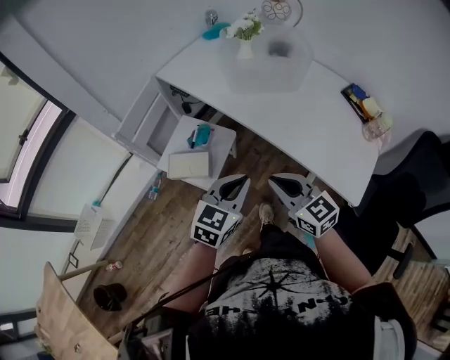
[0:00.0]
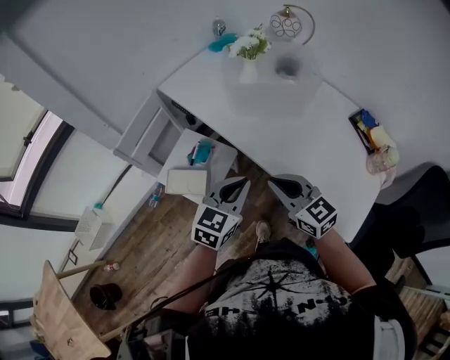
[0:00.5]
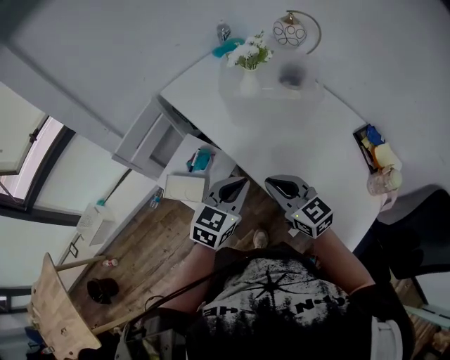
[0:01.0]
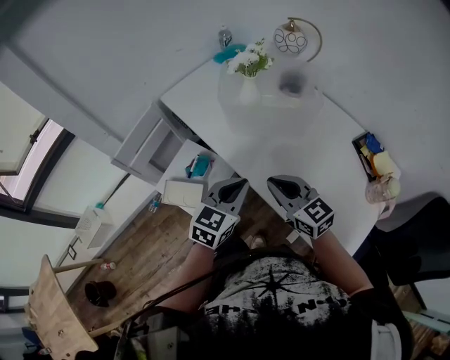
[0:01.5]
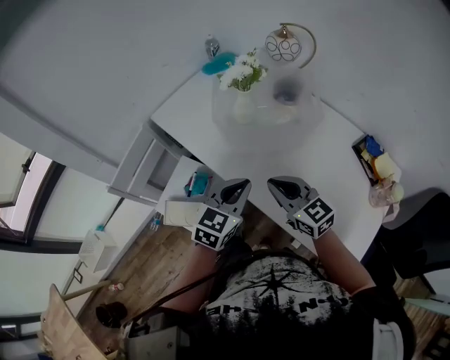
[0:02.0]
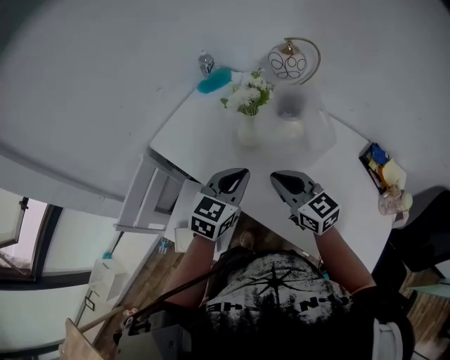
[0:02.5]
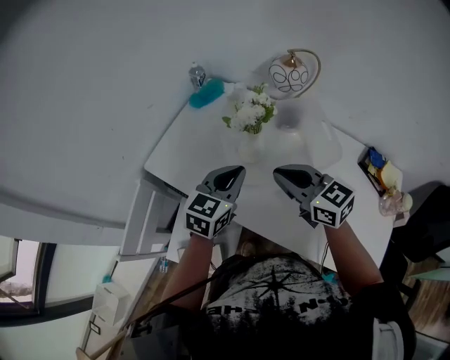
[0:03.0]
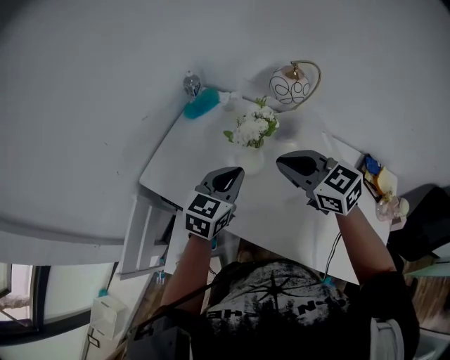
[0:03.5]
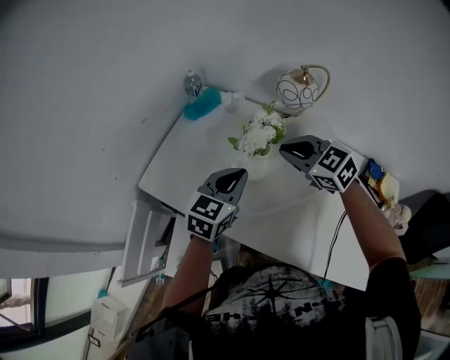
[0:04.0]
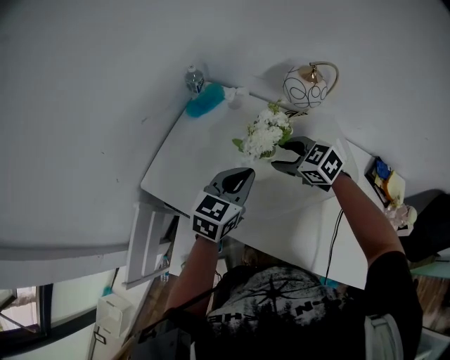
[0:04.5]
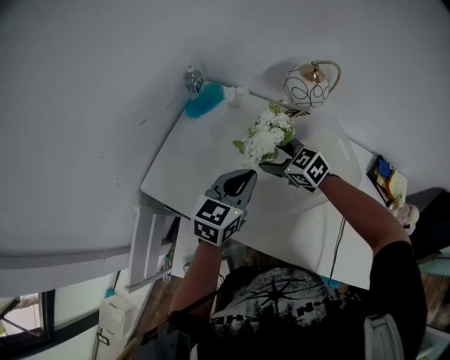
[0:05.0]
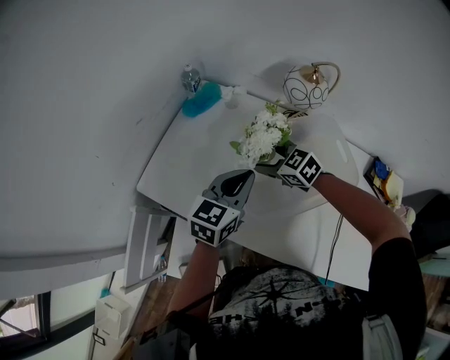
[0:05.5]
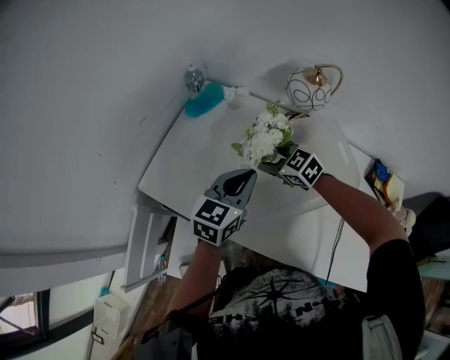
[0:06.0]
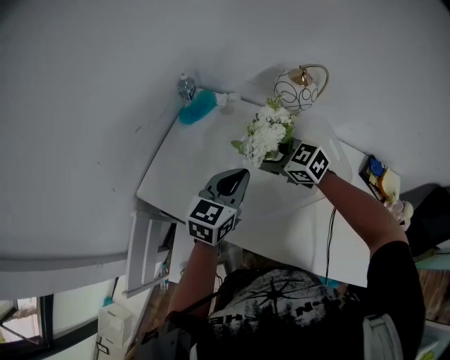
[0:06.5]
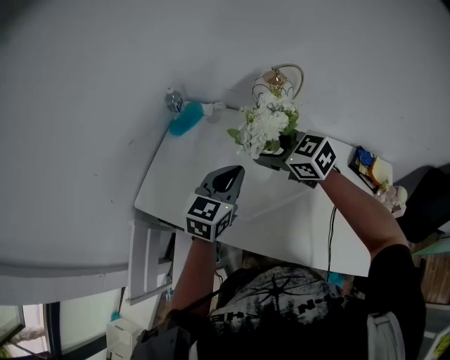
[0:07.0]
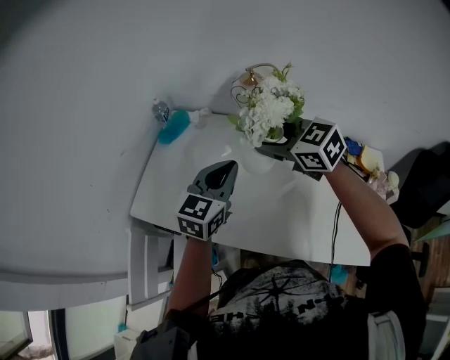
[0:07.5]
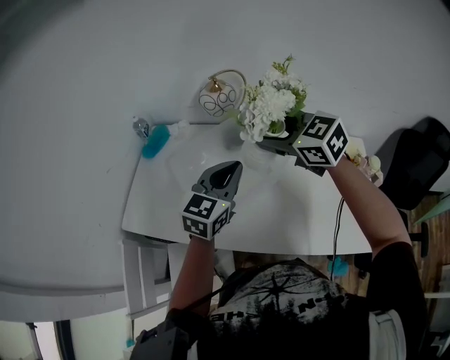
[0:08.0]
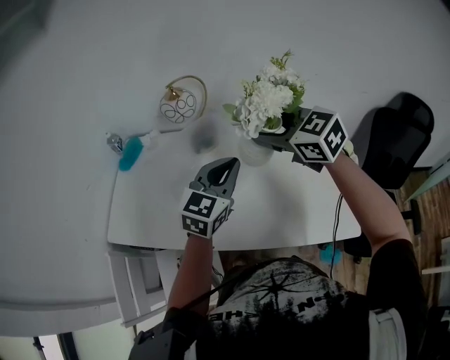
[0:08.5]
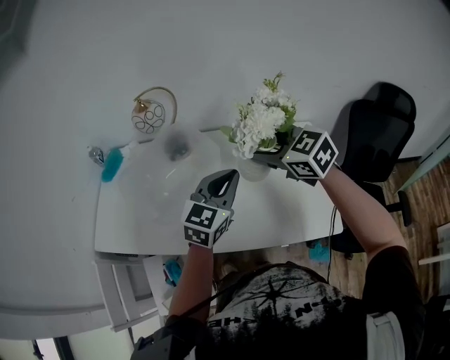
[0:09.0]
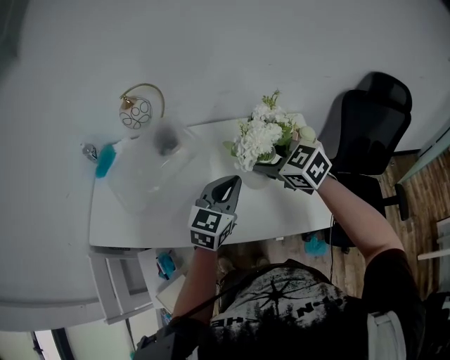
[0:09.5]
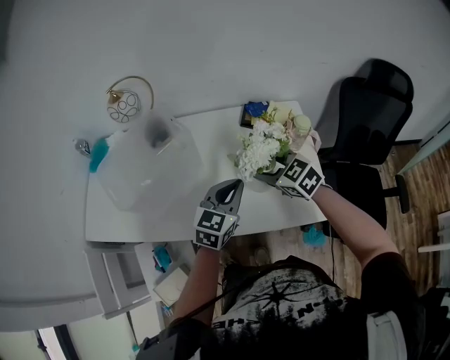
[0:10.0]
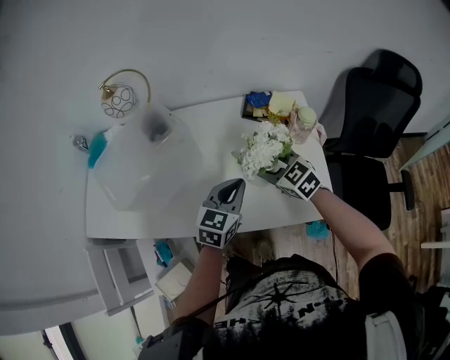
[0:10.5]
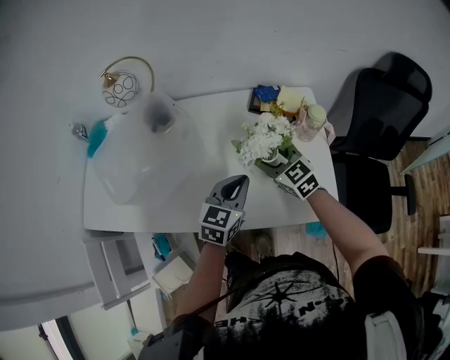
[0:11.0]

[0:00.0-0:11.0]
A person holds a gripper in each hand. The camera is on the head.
0:00.0 to 0:02.0: The grippers both shift forward by roughly 25 cm.
0:02.0 to 0:03.5: The right gripper shifts roughly 25 cm forward and upward, while the left gripper heads forward, covering roughly 25 cm.
0:03.5 to 0:05.5: The right gripper goes some 20 cm downward and forward, and opens; the left gripper heads forward, covering approximately 5 cm.
0:05.5 to 0:07.5: The left gripper goes roughly 10 cm upward; the right gripper heads upward and to the right, covering approximately 20 cm.
0:07.5 to 0:09.0: The left gripper heads to the right, covering roughly 25 cm. The right gripper travels to the right and backward by roughly 30 cm.
0:09.0 to 0:11.0: The left gripper heads downward and to the right, covering approximately 15 cm; the right gripper heads downward, covering approximately 20 cm.

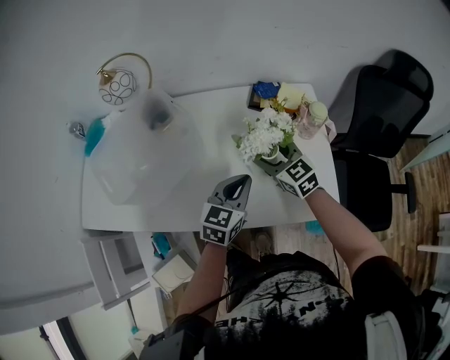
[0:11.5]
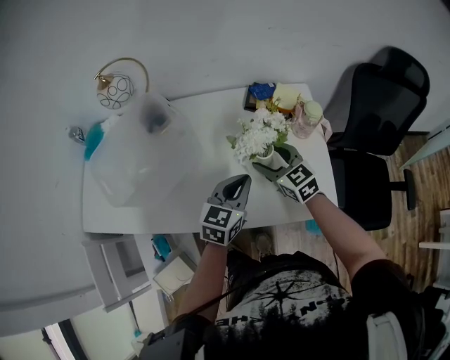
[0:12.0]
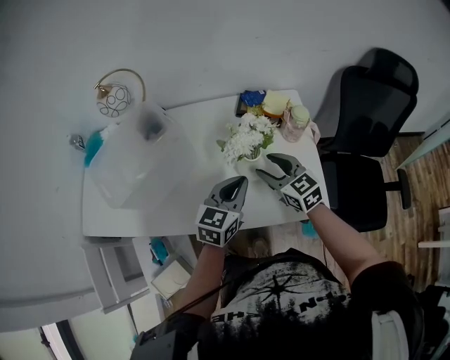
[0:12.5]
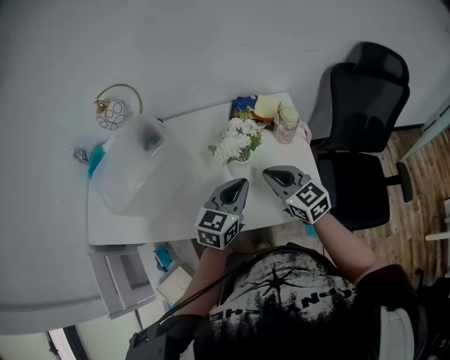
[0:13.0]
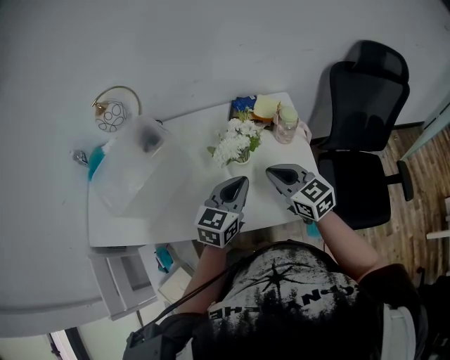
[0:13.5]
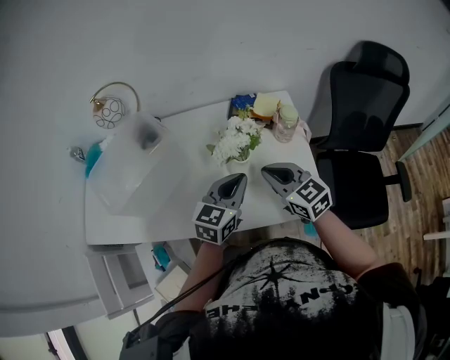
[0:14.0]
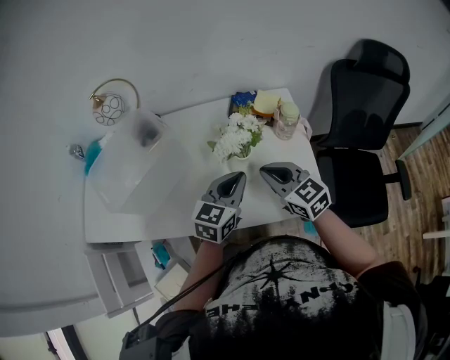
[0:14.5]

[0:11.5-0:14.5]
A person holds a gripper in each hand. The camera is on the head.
0:11.5 to 0:13.0: The left gripper is displaced to the right and upward by some 10 cm. Meanwhile the right gripper is displaced backward, to the right and upward by approximately 15 cm, and closes.
0:13.0 to 0:14.5: The two grippers keep their place.

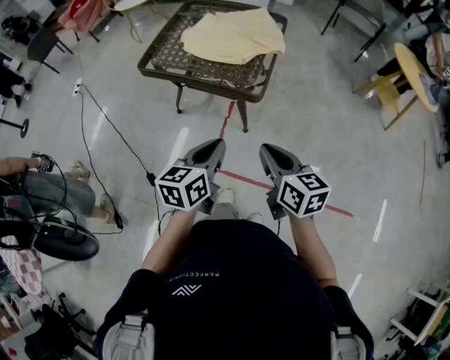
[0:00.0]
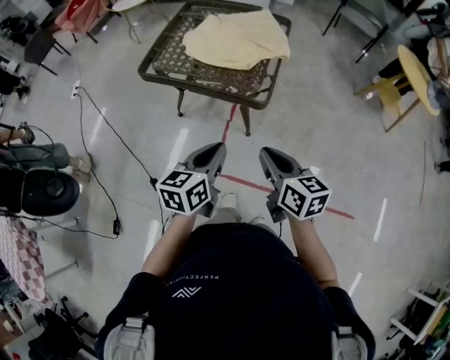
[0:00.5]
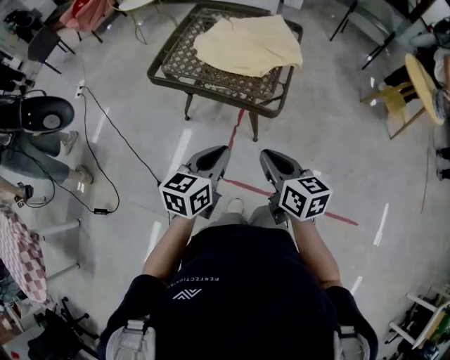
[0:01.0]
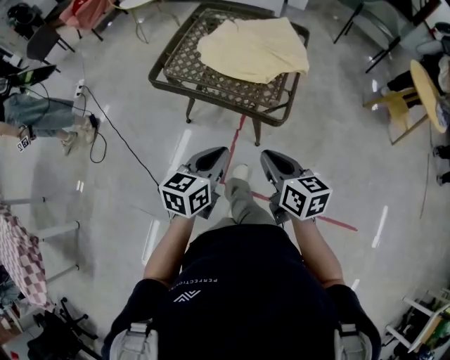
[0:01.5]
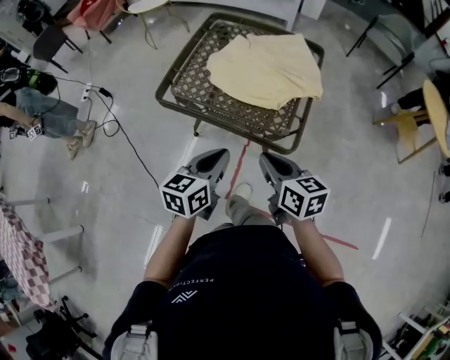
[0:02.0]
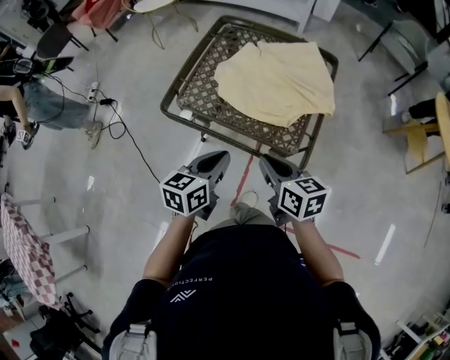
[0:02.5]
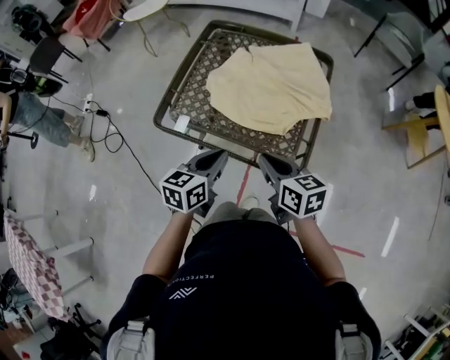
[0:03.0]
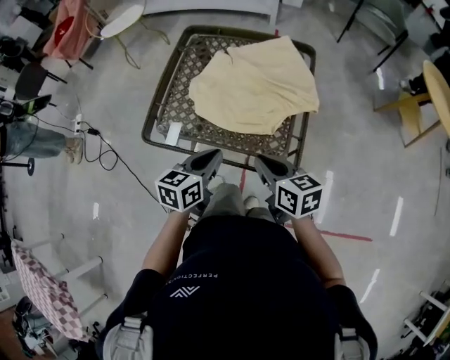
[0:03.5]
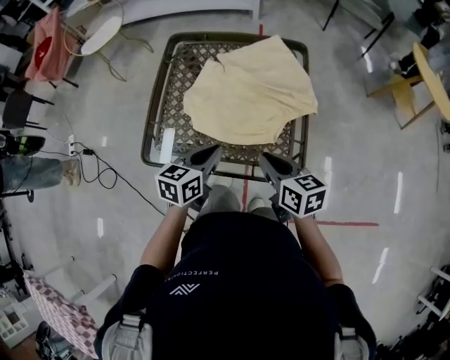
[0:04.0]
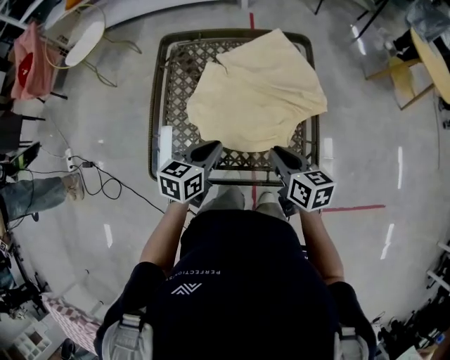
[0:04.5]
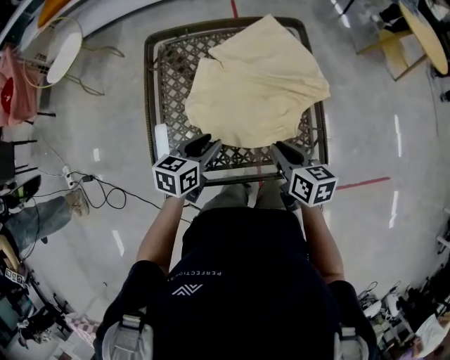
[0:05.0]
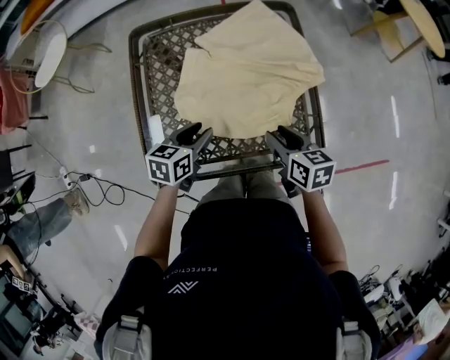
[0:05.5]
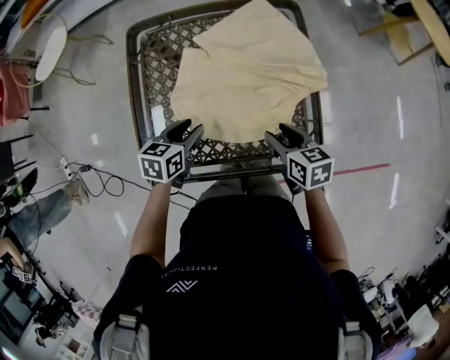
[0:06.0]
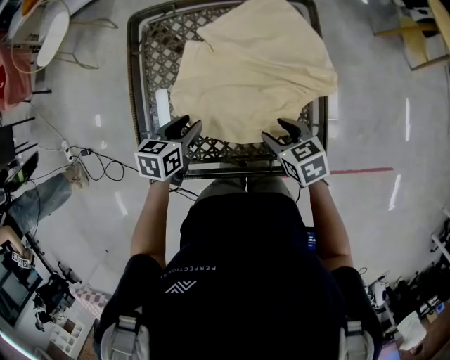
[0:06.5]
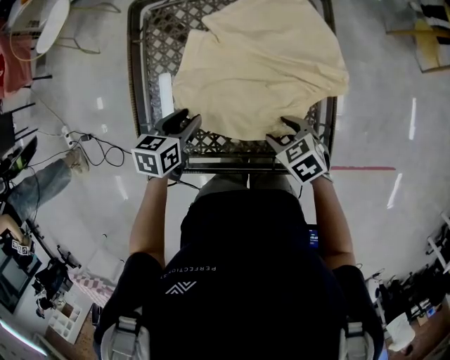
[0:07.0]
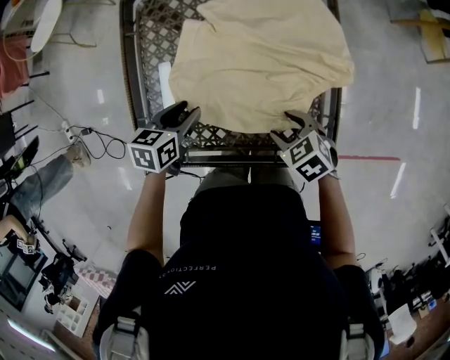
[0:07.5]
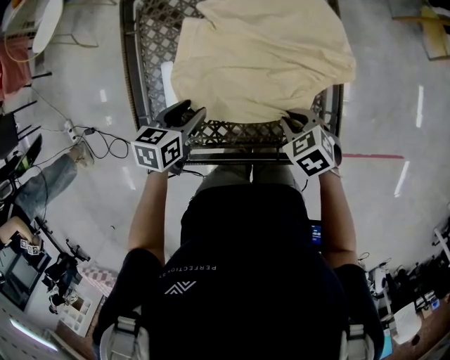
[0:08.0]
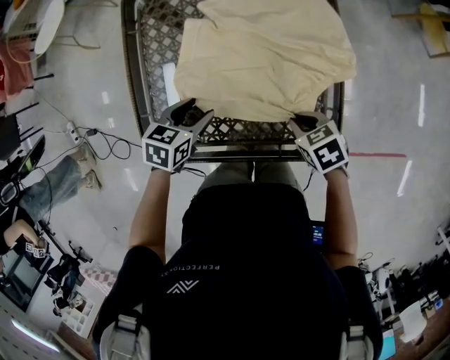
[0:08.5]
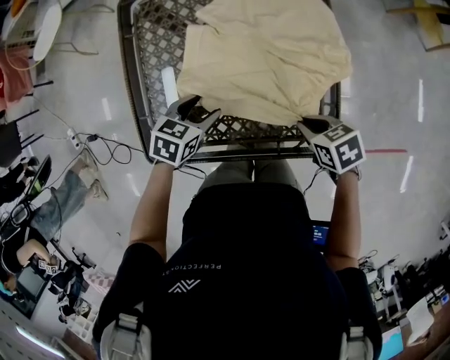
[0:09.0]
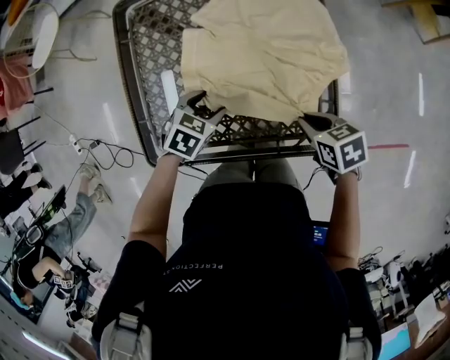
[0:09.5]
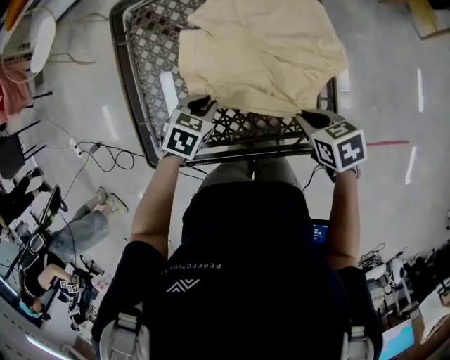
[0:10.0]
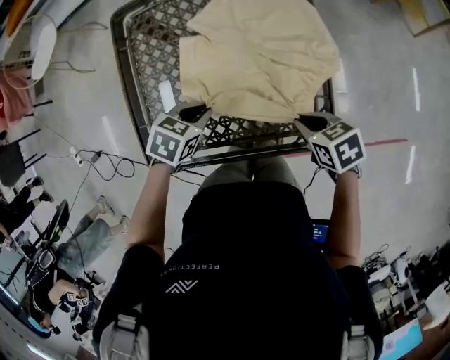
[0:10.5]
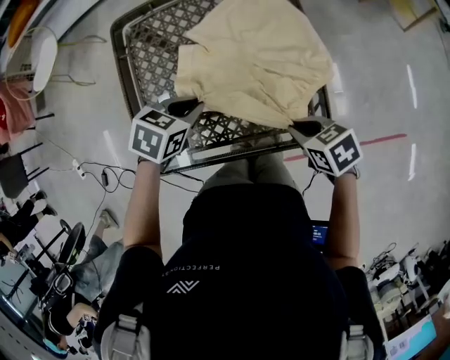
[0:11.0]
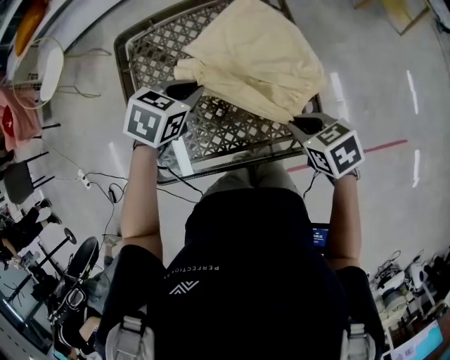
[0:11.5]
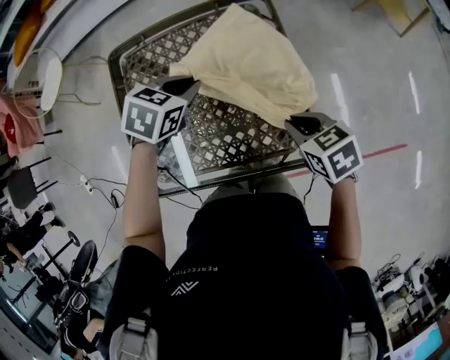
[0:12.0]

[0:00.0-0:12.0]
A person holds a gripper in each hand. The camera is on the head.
0:00.0 to 0:02.0: The grippers both shift forward and to the left by some 25 cm.
0:02.0 to 0:04.0: The two grippers go approximately 20 cm forward.
0:04.0 to 0:06.0: The right gripper goes some 10 cm downward and forward, and opens up. The left gripper heads forward, to the left and downward, covering about 20 cm, and opens up.
0:06.0 to 0:08.0: The right gripper shifts some 10 cm downward, rotates about 40 degrees, and closes.
0:08.0 to 0:10.0: The right gripper shifts by roughly 5 cm, and changes its angle by roughly 30 degrees. Meanwhile the left gripper changes place by approximately 5 cm, rotates roughly 30 degrees, and closes.
0:10.0 to 0:12.0: The right gripper shifts roughly 10 cm upward. Meanwhile the left gripper shifts some 15 cm upward.
